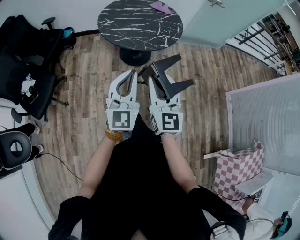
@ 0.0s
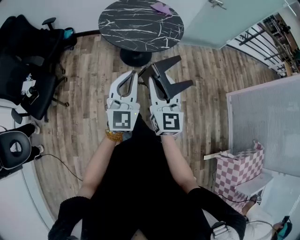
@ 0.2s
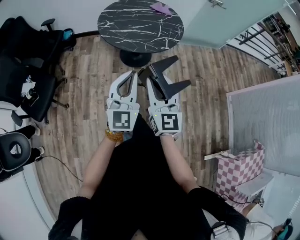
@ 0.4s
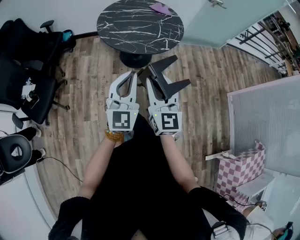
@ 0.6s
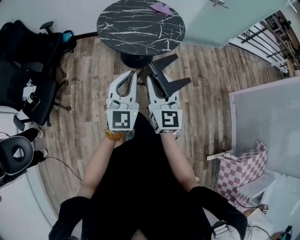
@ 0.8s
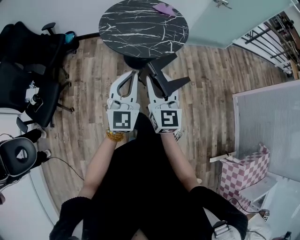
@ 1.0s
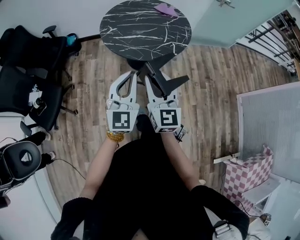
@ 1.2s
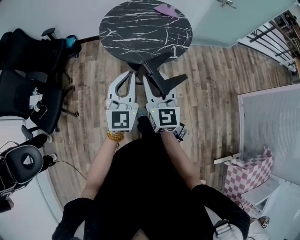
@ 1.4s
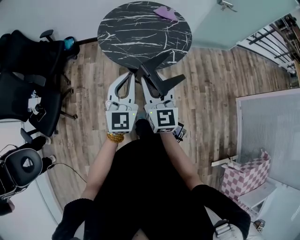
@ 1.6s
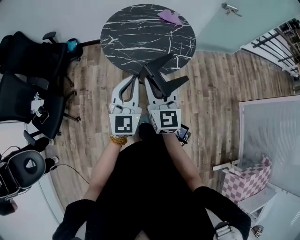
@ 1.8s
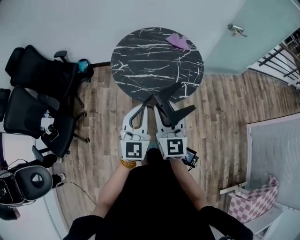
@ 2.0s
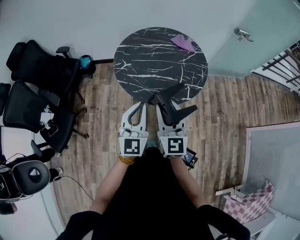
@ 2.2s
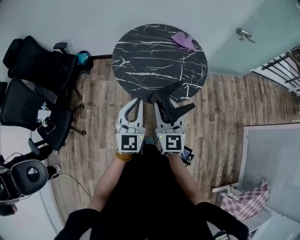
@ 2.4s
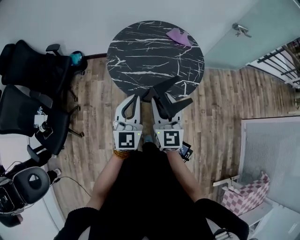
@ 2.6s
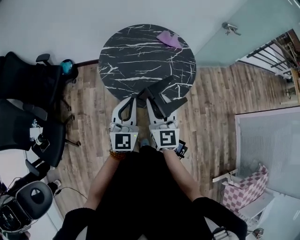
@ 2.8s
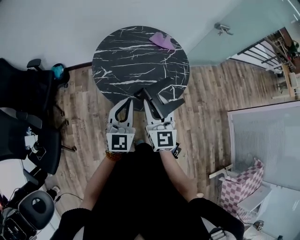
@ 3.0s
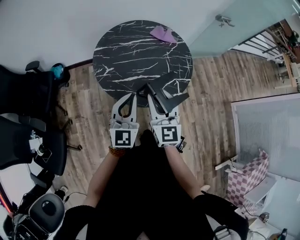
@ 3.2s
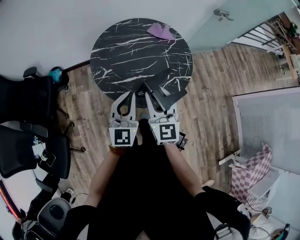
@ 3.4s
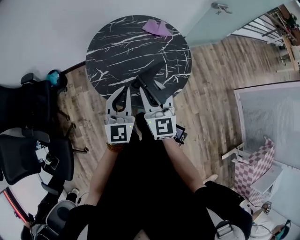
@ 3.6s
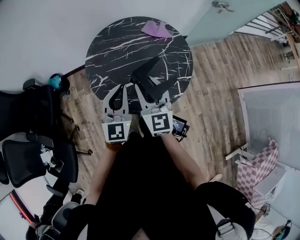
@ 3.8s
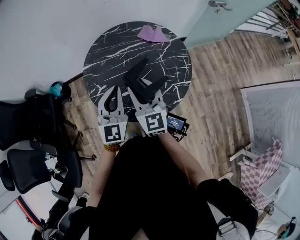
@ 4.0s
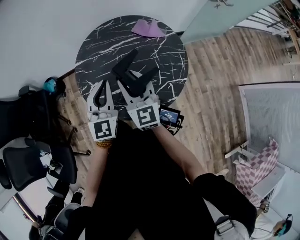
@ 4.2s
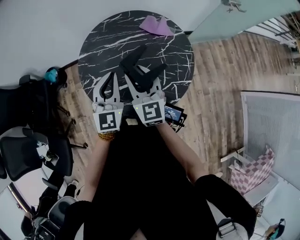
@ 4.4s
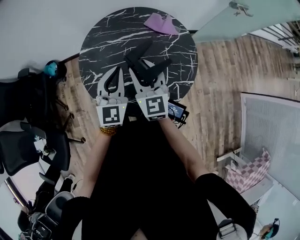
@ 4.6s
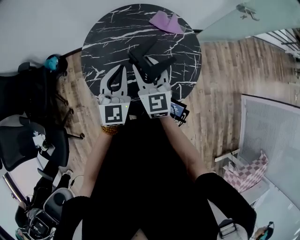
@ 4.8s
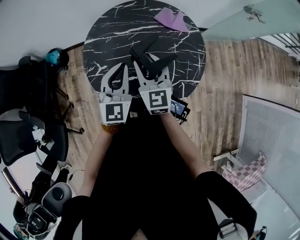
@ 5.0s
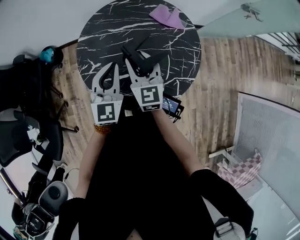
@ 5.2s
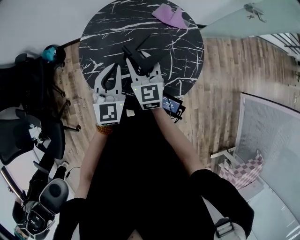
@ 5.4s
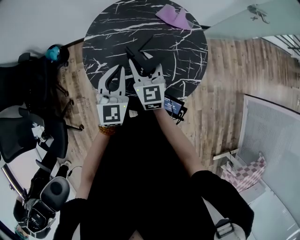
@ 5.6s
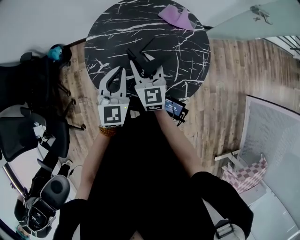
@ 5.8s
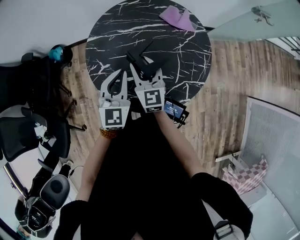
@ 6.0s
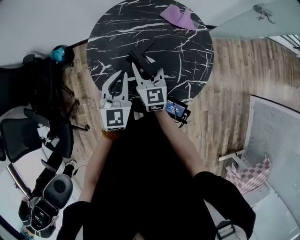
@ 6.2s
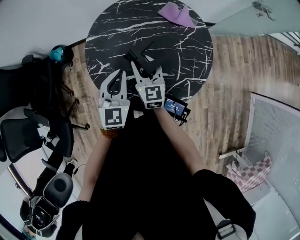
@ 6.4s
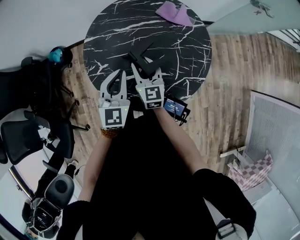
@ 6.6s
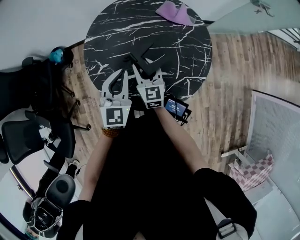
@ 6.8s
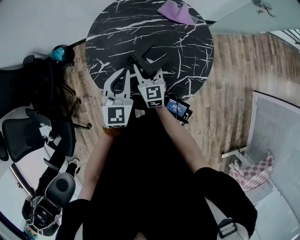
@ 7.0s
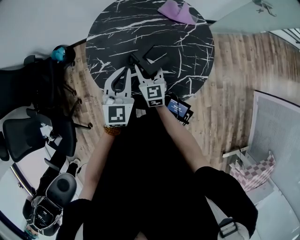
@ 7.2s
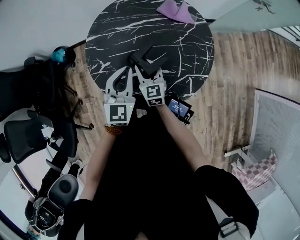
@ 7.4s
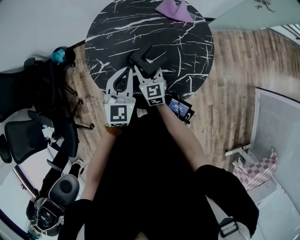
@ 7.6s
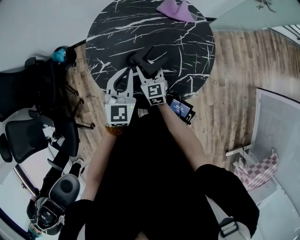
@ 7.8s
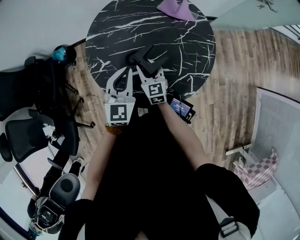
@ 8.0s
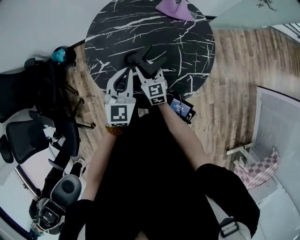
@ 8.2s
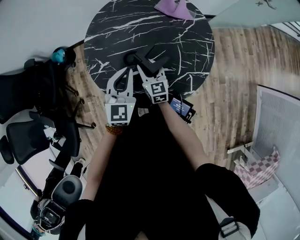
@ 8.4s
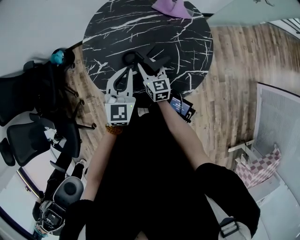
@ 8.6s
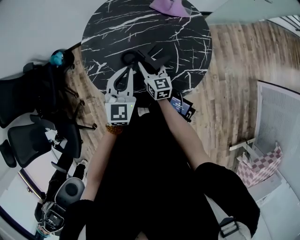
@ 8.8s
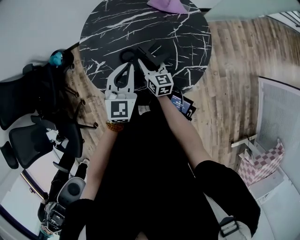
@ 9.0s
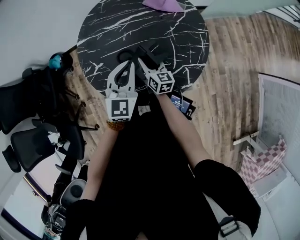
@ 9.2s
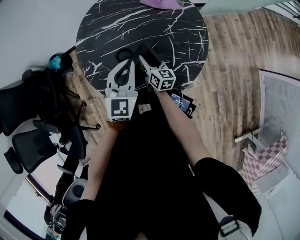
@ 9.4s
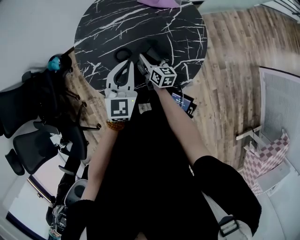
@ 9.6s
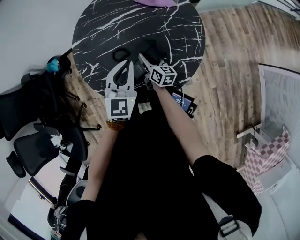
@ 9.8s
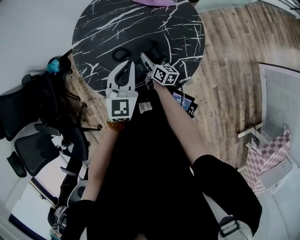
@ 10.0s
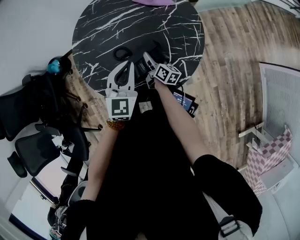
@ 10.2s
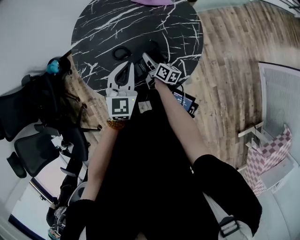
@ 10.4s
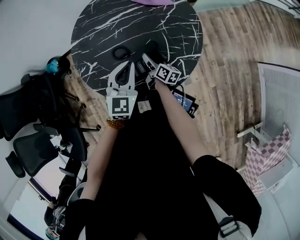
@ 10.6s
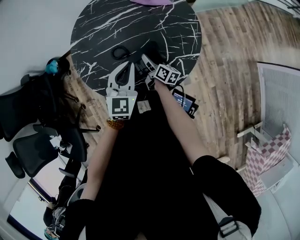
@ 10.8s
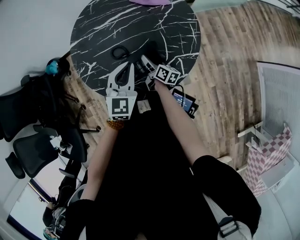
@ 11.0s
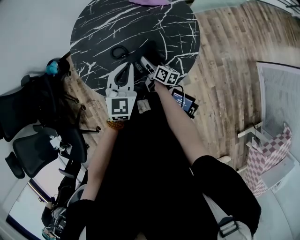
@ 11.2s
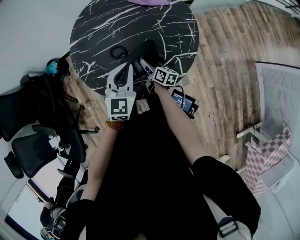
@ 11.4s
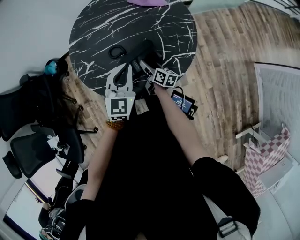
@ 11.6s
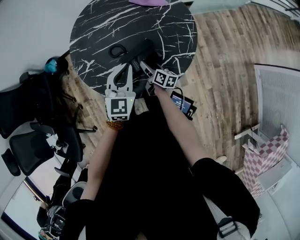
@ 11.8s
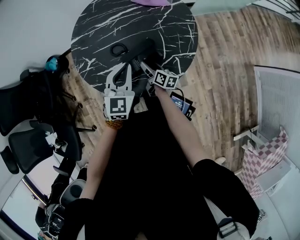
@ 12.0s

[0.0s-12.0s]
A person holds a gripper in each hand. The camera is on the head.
0.0s to 1.6s: Both grippers move forward, some 20 cm.
1.6s to 3.0s: Both grippers move forward, about 20 cm.
3.0s to 4.4s: Both grippers move forward, approximately 25 cm.
4.4s to 6.0s: The left gripper is displaced downward by about 5 cm. Meanwhile the right gripper travels downward and forward by about 10 cm.
6.0s to 7.6s: The right gripper heads downward, covering about 10 cm.
7.6s to 9.0s: The right gripper shifts by about 5 cm, and rotates some 20 degrees.
9.0s to 10.4s: The right gripper is displaced downward and to the right by about 10 cm, and rotates about 40 degrees; the left gripper changes place by some 5 cm.
10.4s to 12.0s: The right gripper travels backward by some 5 cm.

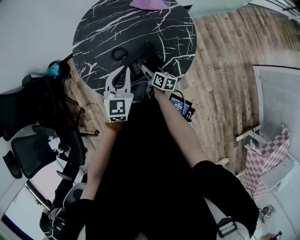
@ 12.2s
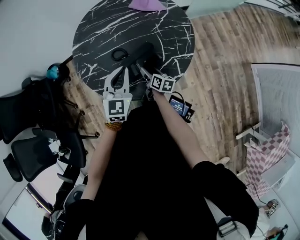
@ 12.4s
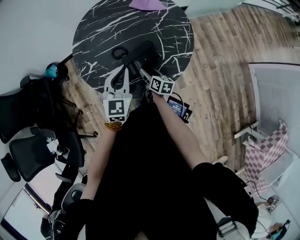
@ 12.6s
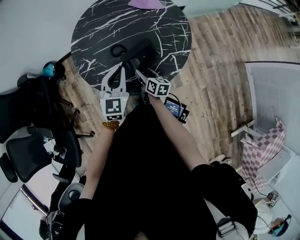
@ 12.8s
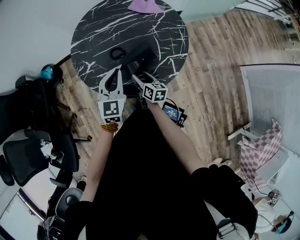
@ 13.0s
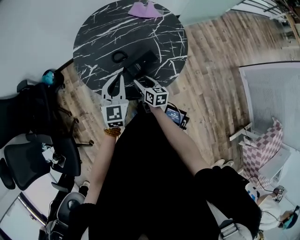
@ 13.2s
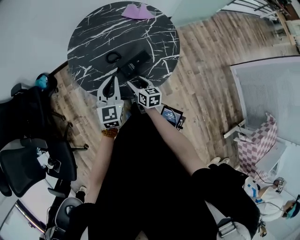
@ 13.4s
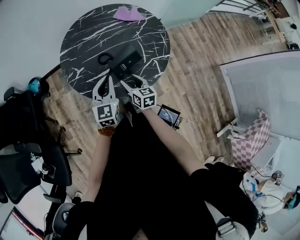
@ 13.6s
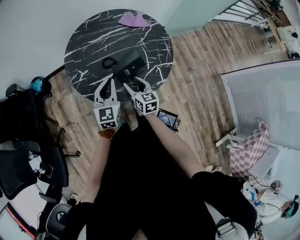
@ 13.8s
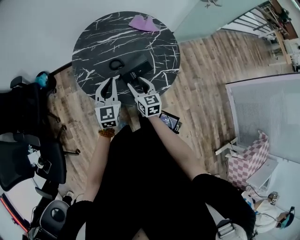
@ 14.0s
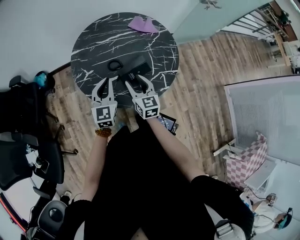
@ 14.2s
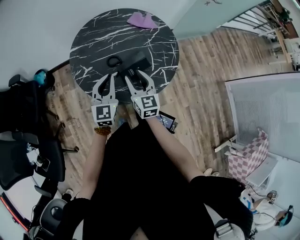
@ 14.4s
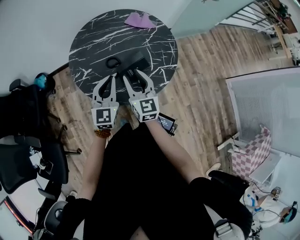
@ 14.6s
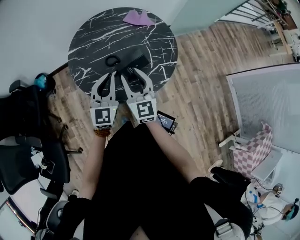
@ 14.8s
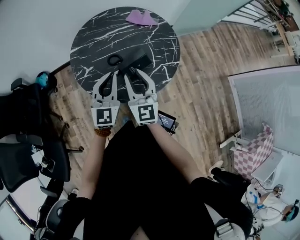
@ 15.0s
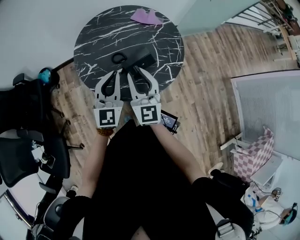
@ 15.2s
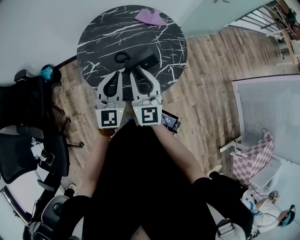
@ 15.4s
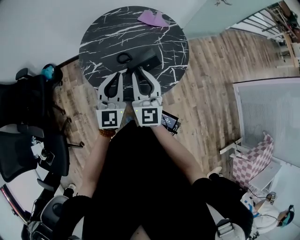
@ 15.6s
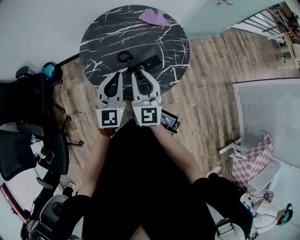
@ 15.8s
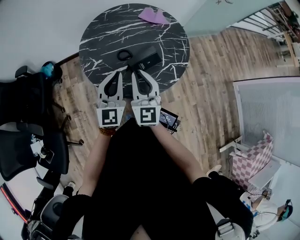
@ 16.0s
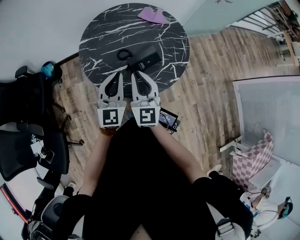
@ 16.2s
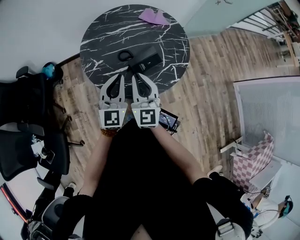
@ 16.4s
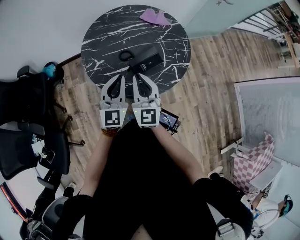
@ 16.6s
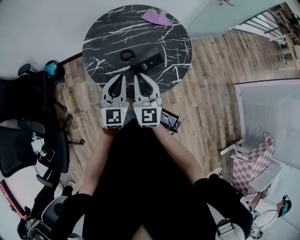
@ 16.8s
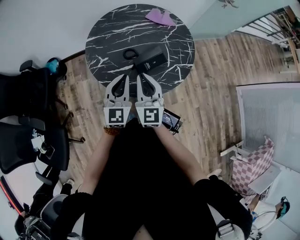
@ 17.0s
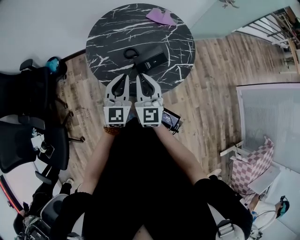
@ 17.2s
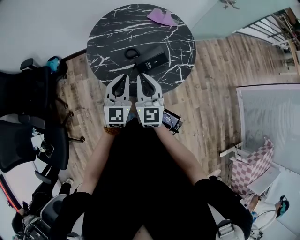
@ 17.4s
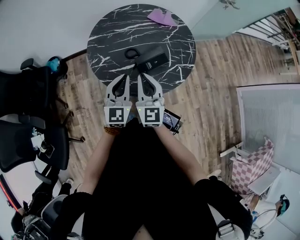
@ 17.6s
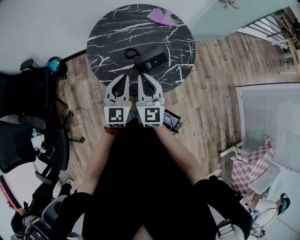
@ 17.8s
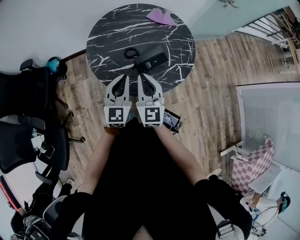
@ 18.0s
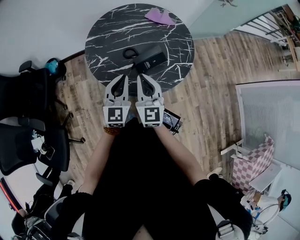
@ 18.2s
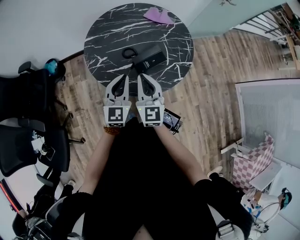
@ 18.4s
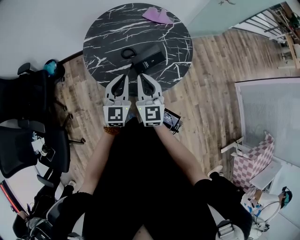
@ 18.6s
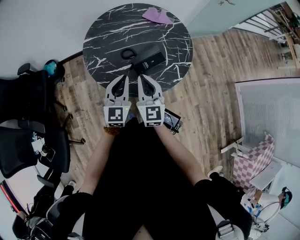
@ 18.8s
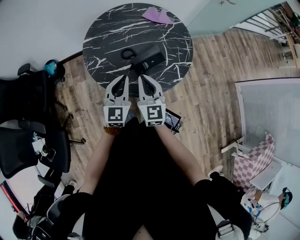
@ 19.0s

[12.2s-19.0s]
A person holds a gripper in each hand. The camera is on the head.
12.2s to 13.6s: The right gripper shifts some 15 cm upward, backward and to the left, and turns by some 30 degrees, while the left gripper heads to the left and backward, covering approximately 10 cm.
13.6s to 15.0s: The right gripper goes roughly 20 cm upward, rotates roughly 40 degrees, and closes; the left gripper is displaced upward by some 5 cm.
15.0s to 17.6s: The grippers make only small movements.
17.6s to 19.0s: There are only small adjustments of the grippers.

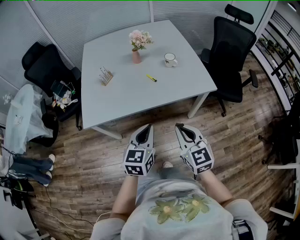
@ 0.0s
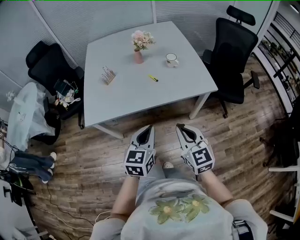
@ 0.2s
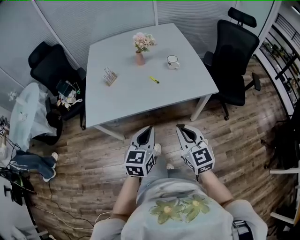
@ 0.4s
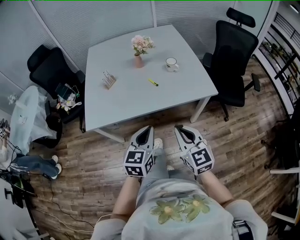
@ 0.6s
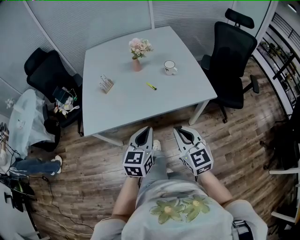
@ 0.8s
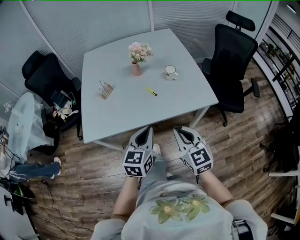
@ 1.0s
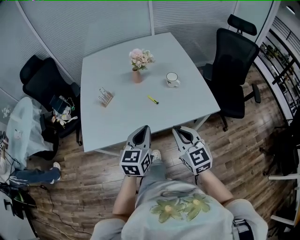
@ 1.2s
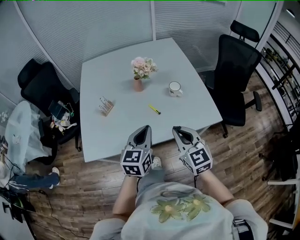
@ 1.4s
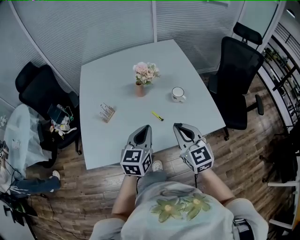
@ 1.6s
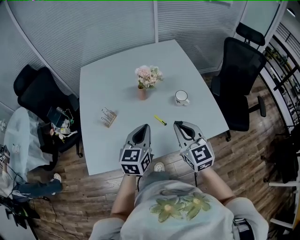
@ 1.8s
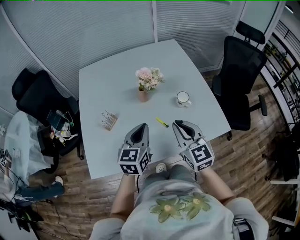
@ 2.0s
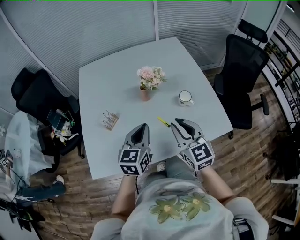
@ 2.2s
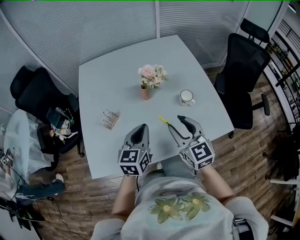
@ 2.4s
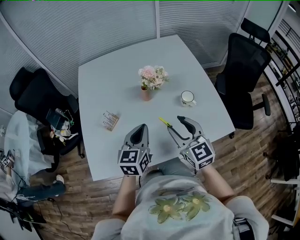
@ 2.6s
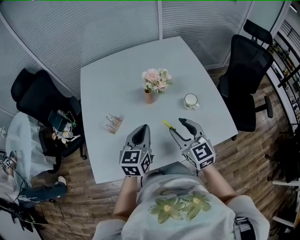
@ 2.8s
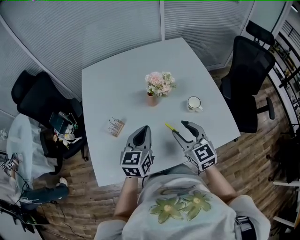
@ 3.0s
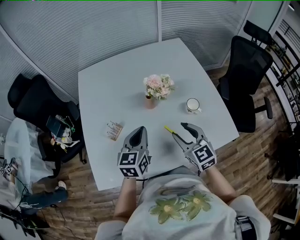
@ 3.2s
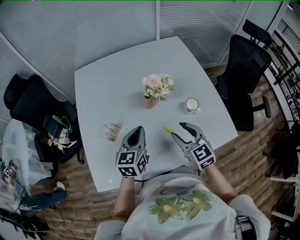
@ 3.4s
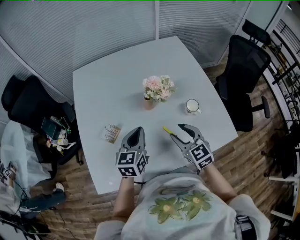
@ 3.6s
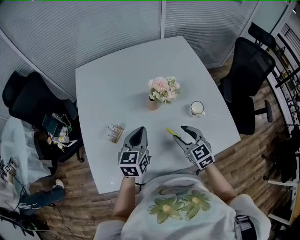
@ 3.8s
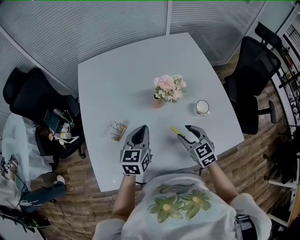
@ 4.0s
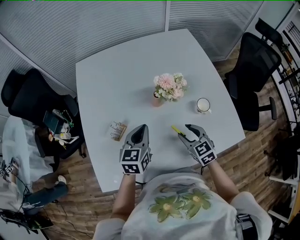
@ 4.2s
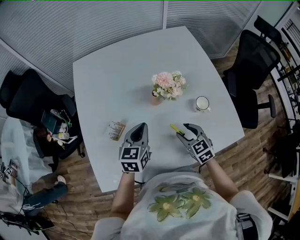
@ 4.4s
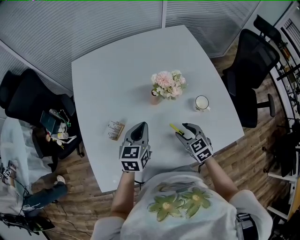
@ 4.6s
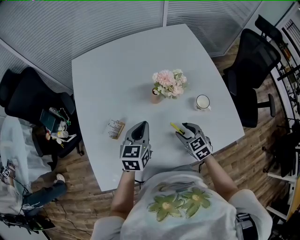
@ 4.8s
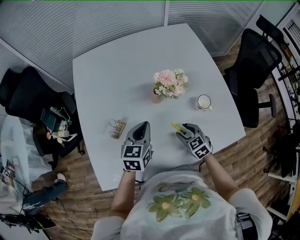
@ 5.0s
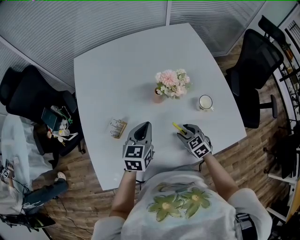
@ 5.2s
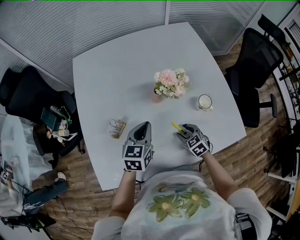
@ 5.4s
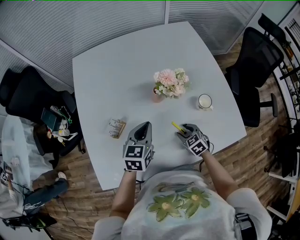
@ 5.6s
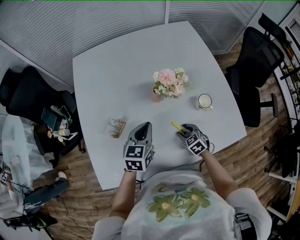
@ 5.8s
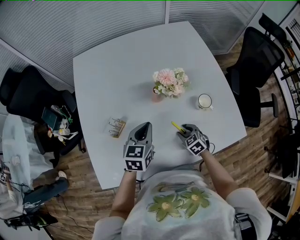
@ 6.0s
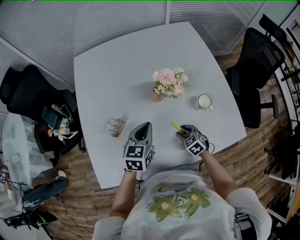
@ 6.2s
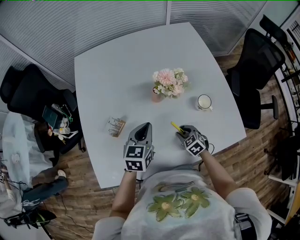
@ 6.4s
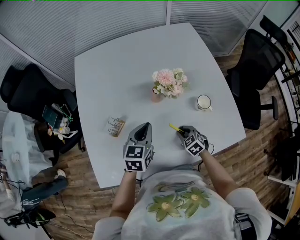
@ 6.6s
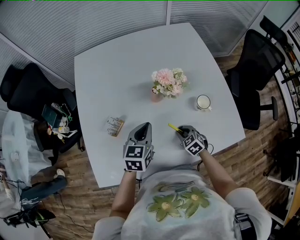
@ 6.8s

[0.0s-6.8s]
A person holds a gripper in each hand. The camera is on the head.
0.0s to 1.4s: The two grippers go some 20 cm forward.
1.4s to 2.8s: The left gripper travels forward and to the left by roughly 20 cm. Meanwhile the right gripper is displaced forward by roughly 20 cm, and opens its fingers.
2.8s to 4.0s: The left gripper goes about 10 cm forward and downward; the right gripper travels downward and forward by approximately 15 cm.
4.0s to 5.4s: The right gripper moves downward, some 15 cm.
5.4s to 6.8s: The right gripper closes up.
